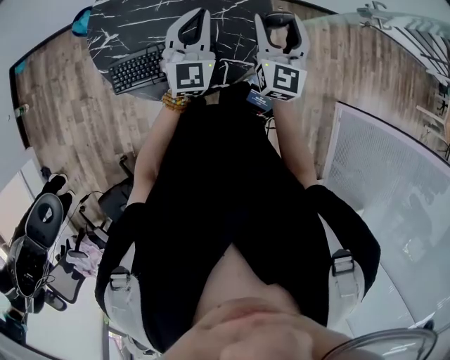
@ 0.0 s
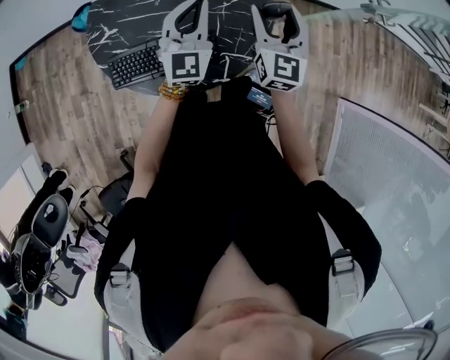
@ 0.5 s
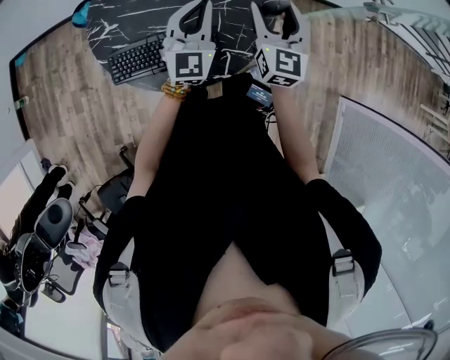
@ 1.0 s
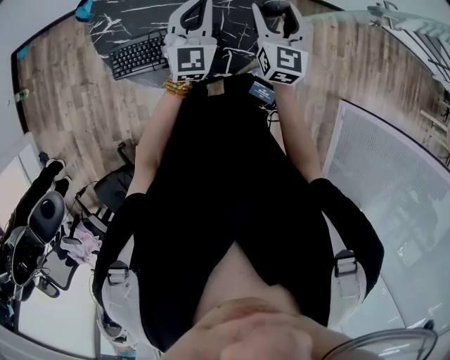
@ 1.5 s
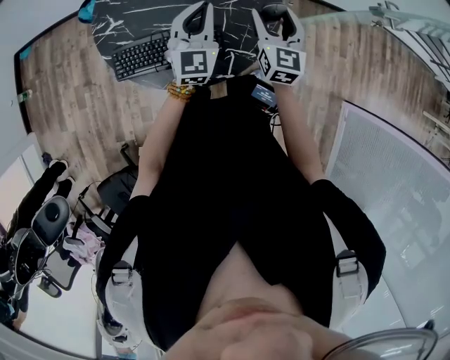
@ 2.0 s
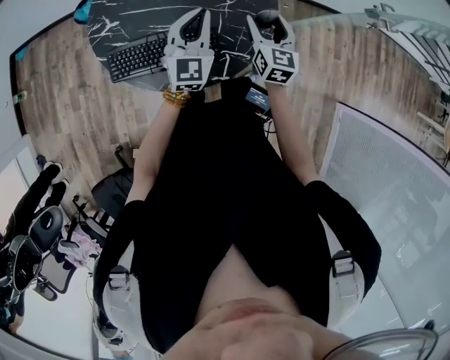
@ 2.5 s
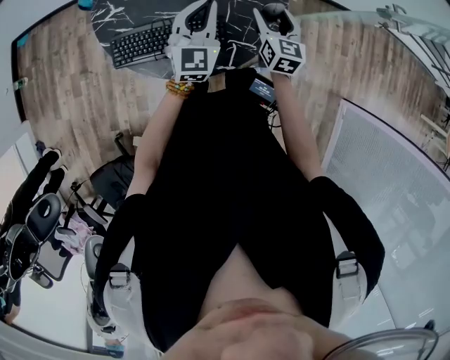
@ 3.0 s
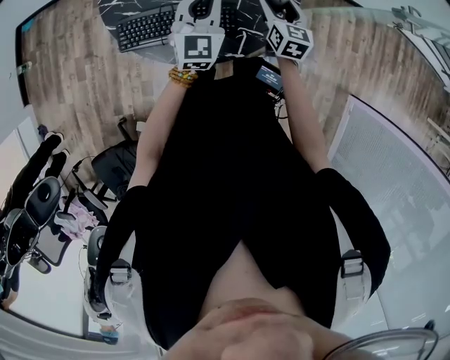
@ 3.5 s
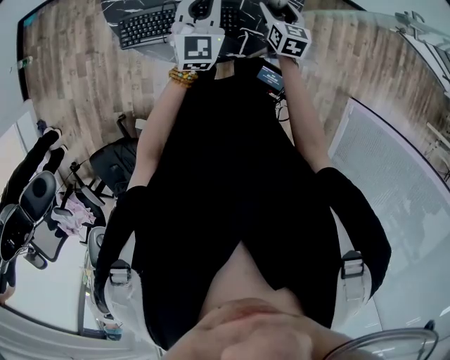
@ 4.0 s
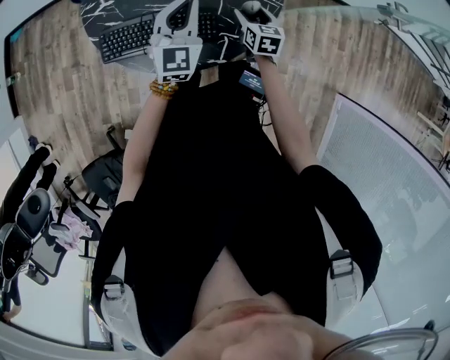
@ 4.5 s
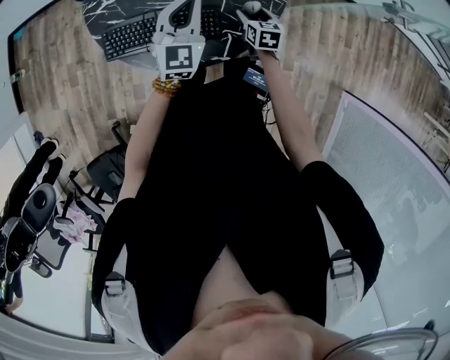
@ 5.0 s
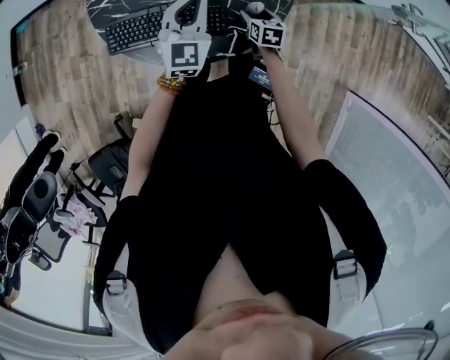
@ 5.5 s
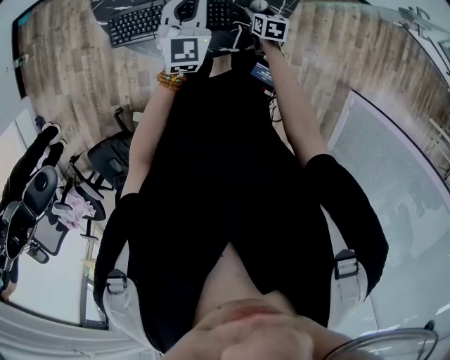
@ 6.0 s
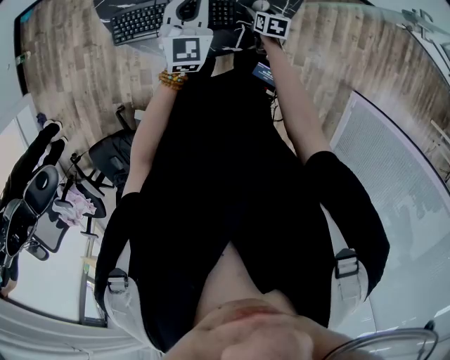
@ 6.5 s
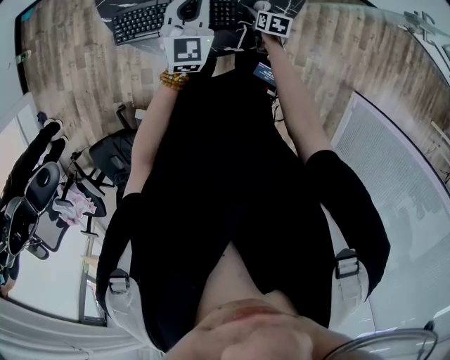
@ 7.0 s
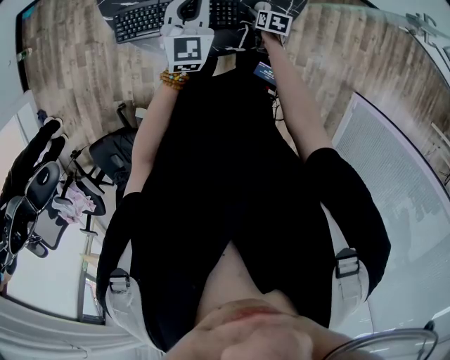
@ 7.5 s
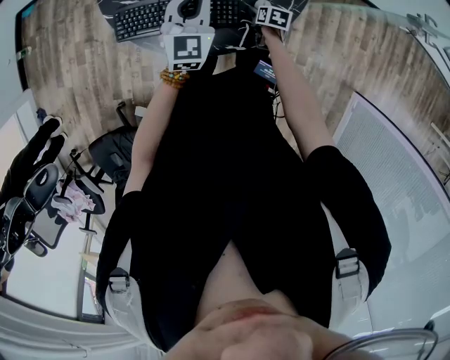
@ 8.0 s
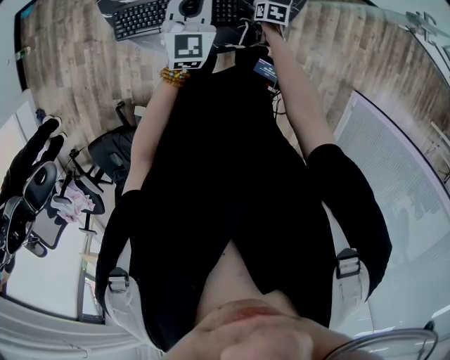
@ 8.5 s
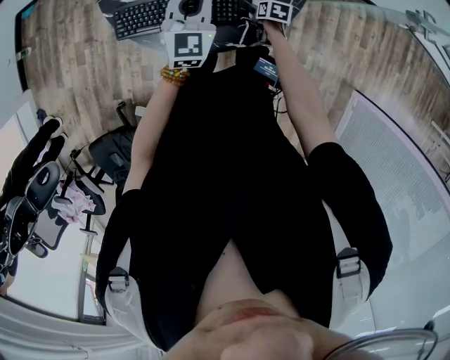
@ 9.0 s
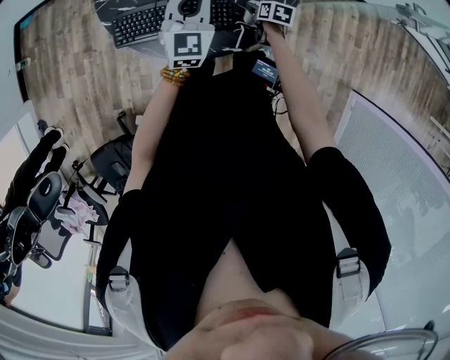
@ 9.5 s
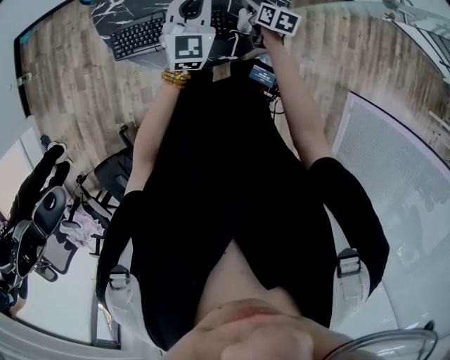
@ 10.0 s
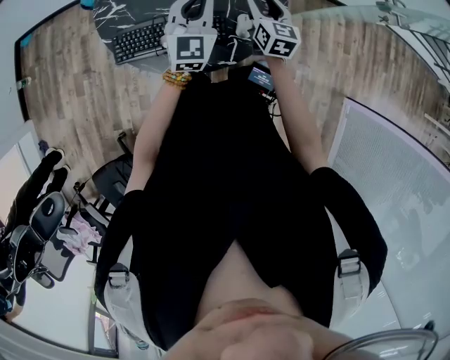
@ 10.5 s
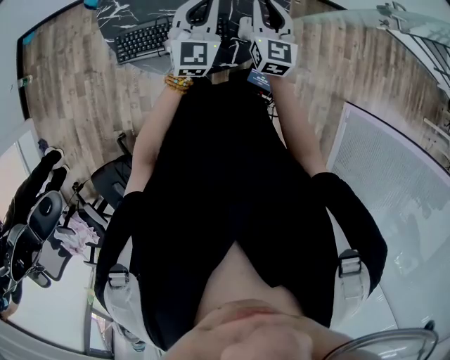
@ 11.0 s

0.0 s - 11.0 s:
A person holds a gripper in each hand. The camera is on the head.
0.0 s - 2.0 s: The right gripper shifts some 5 cm downward.
2.0 s - 3.5 s: The right gripper travels downward by roughly 10 cm.
3.5 s - 5.5 s: The right gripper is displaced downward by some 15 cm, and rotates some 20 degrees.
5.5 s - 7.5 s: The right gripper moves downward, roughly 10 cm.
7.5 s - 9.0 s: The grippers move only a little.
9.0 s - 11.0 s: The right gripper travels upward by some 35 cm, tilts its fingers some 60 degrees upward, and closes up, while the left gripper goes some 5 cm upward.

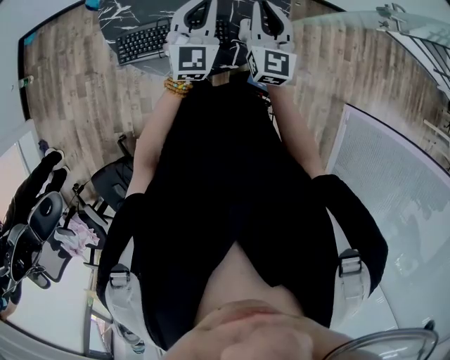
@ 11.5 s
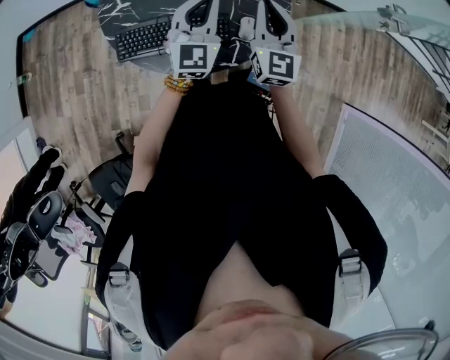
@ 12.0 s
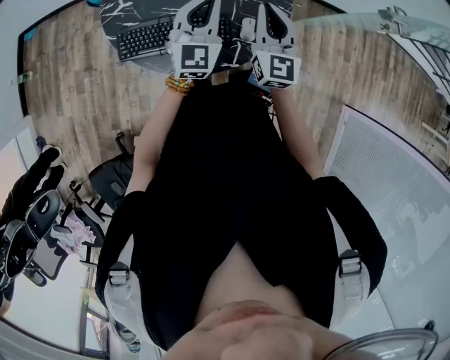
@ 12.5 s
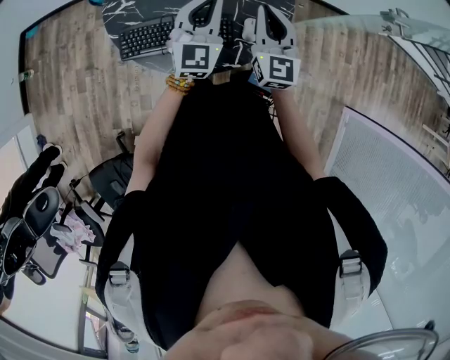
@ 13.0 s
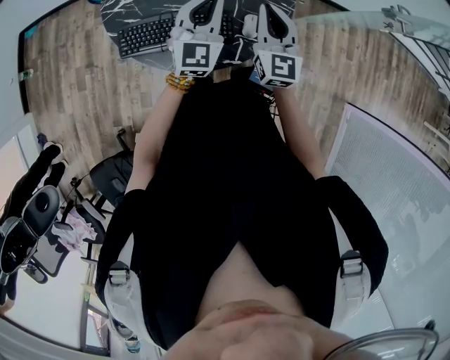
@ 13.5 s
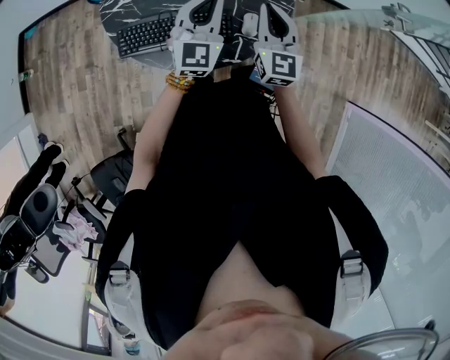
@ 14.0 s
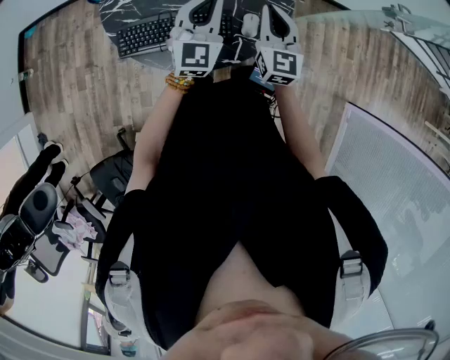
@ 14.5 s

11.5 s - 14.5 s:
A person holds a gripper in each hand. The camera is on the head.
11.5 s - 14.5 s: The grippers stay close to where they were, moving slightly.

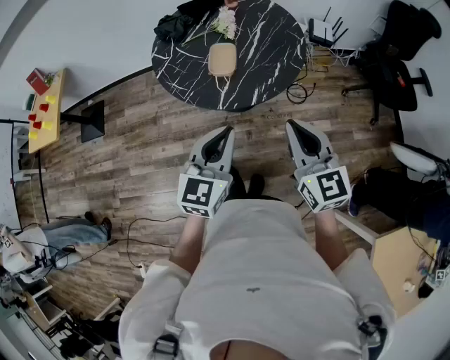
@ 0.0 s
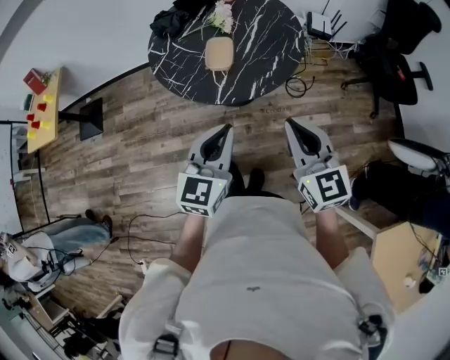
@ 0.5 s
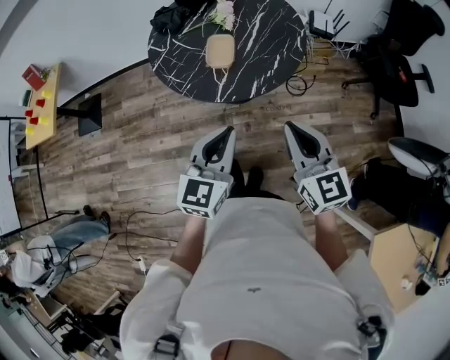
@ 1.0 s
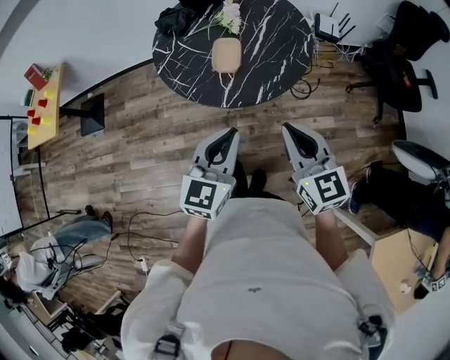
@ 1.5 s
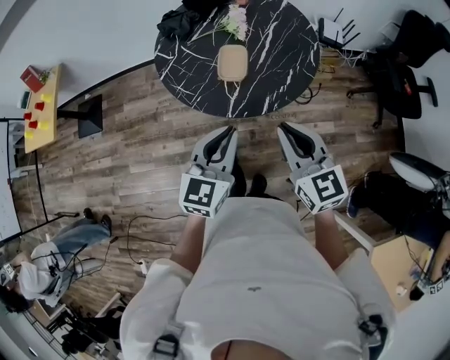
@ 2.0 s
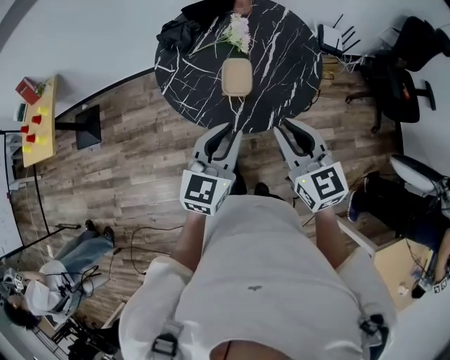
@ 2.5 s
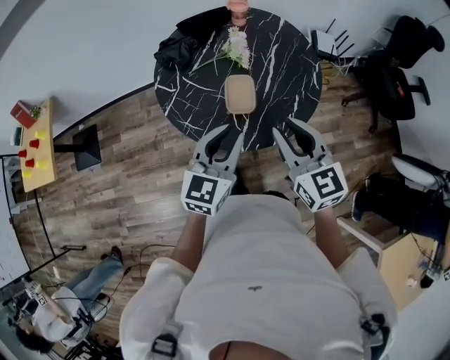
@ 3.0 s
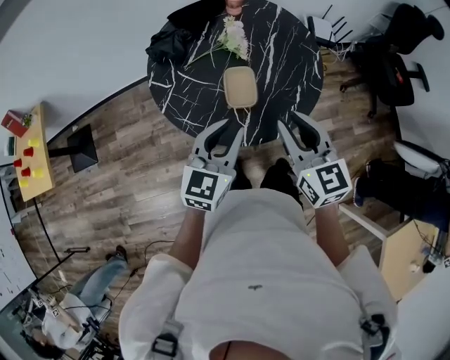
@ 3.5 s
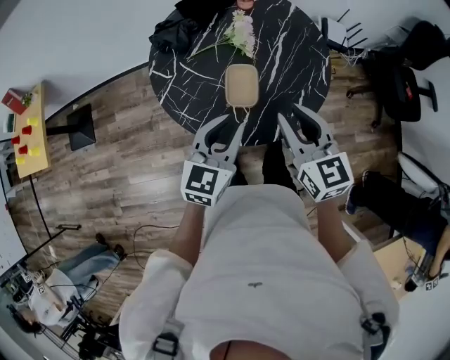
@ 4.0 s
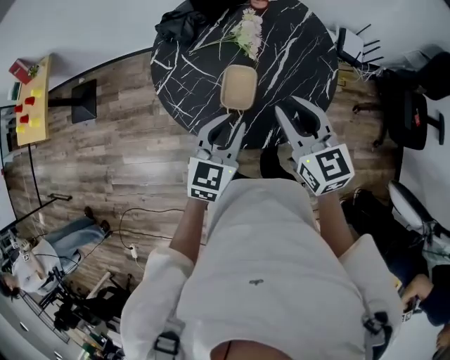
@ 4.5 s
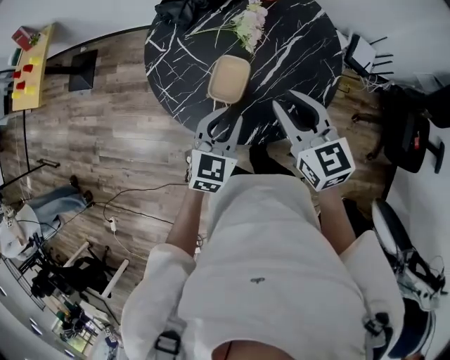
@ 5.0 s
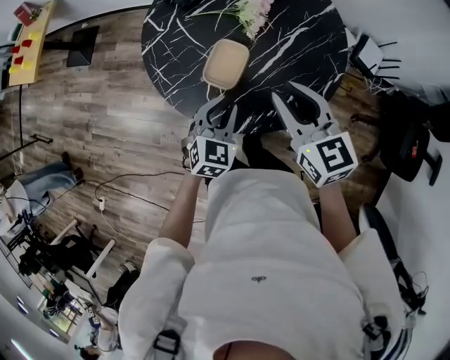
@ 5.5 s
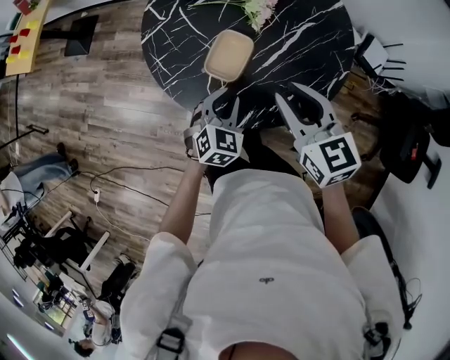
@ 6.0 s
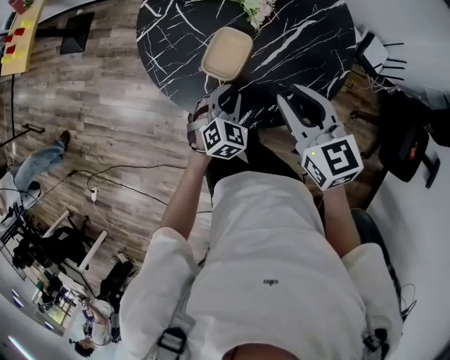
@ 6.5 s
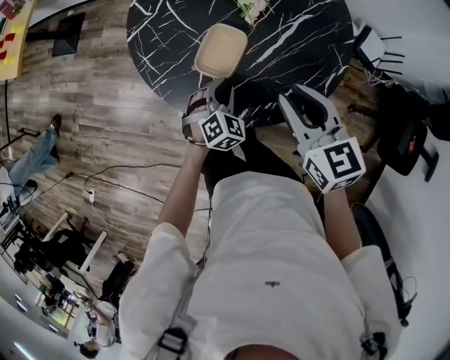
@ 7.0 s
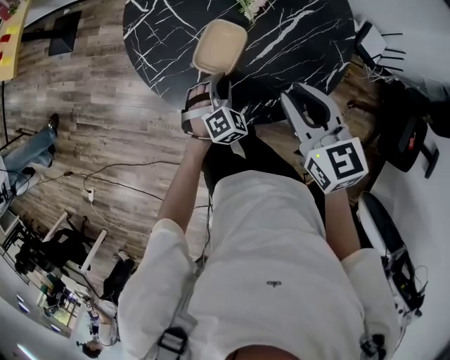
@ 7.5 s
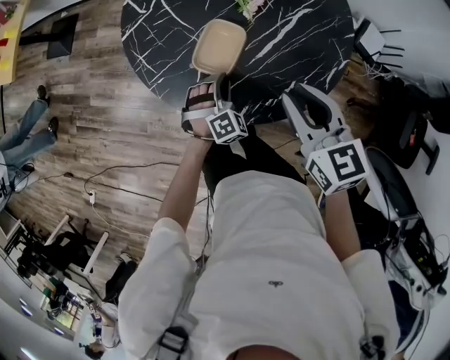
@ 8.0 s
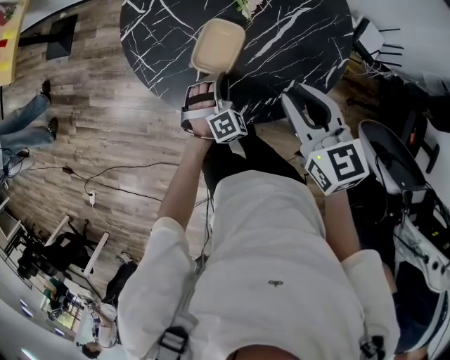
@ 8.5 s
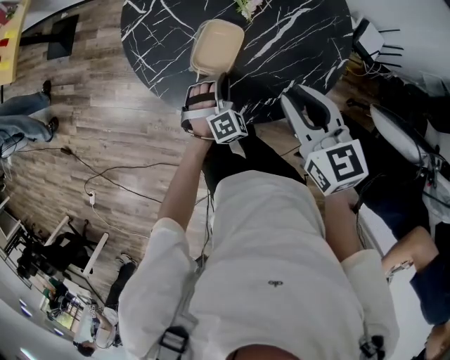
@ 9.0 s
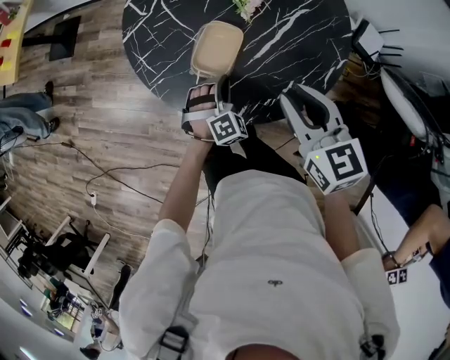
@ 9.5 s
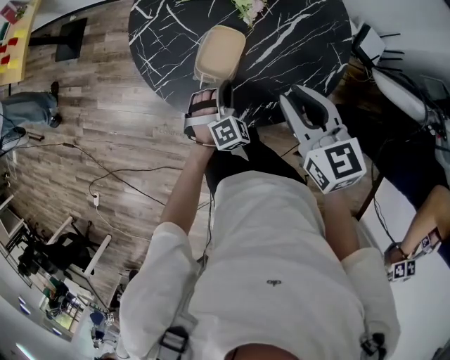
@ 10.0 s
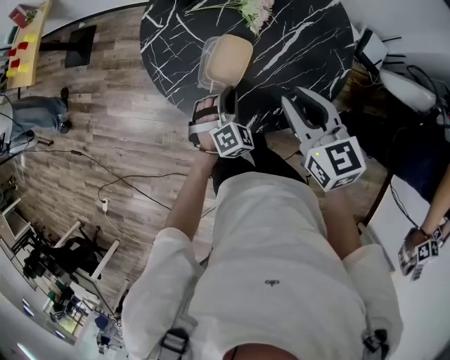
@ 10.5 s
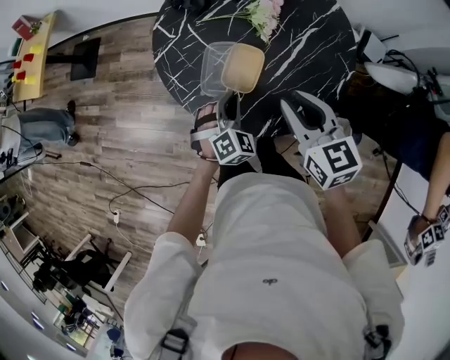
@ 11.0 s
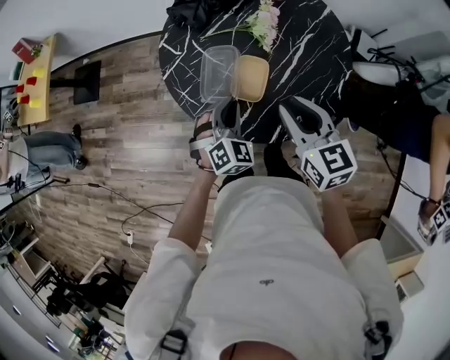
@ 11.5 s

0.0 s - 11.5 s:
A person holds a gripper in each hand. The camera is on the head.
0.0 s - 2.0 s: The right gripper goes about 10 cm forward and to the left, while the left gripper travels forward by approximately 5 cm.
2.0 s - 4.0 s: The grippers both shift forward by roughly 15 cm.
4.0 s - 6.0 s: The right gripper shifts by roughly 10 cm, and rotates approximately 30 degrees; the left gripper heads downward, covering some 15 cm, and swivels approximately 40 degrees.
6.0 s - 7.5 s: The left gripper goes roughly 10 cm downward, and rotates some 20 degrees.
7.5 s - 9.5 s: There are only small adjustments of the grippers.
9.5 s - 11.5 s: The right gripper is displaced to the left by approximately 10 cm; the left gripper heads upward and to the left, covering approximately 15 cm.

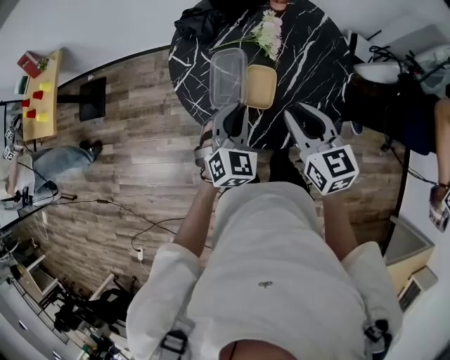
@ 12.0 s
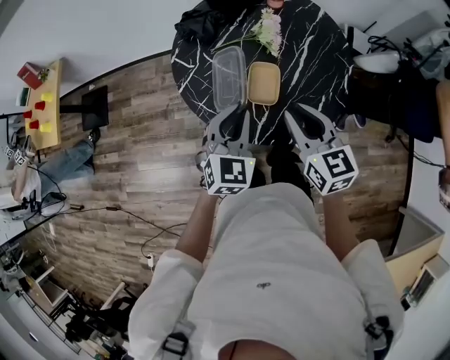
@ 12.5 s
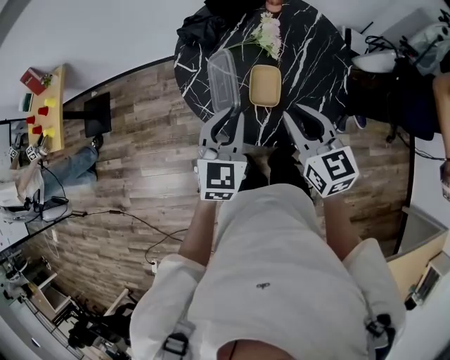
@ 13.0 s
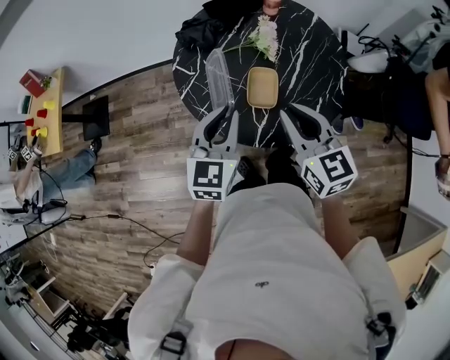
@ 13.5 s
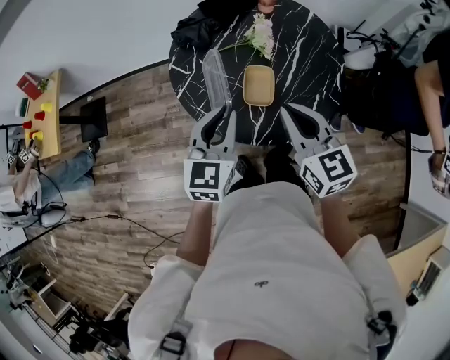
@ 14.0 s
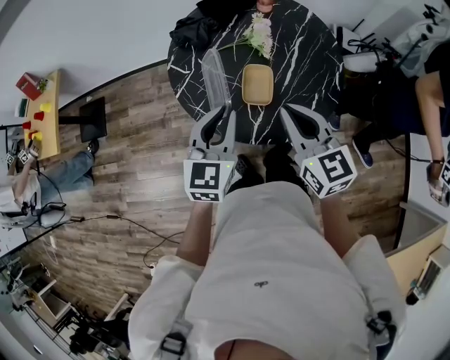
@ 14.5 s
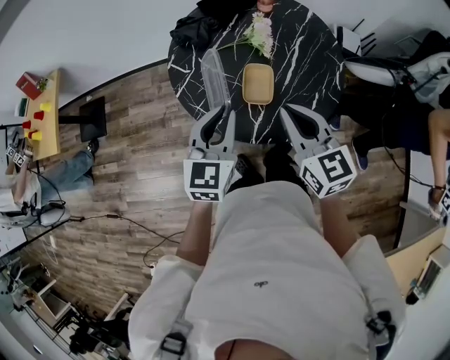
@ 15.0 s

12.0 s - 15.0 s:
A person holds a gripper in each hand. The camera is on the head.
12.0 s - 13.5 s: The left gripper shifts roughly 10 cm upward, and rotates roughly 30 degrees. Meanwhile the right gripper moves upward, approximately 5 cm.
13.5 s - 15.0 s: Both grippers stay put.
